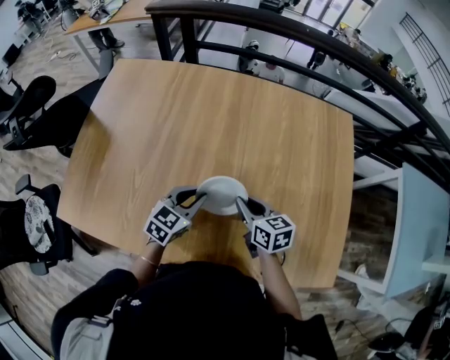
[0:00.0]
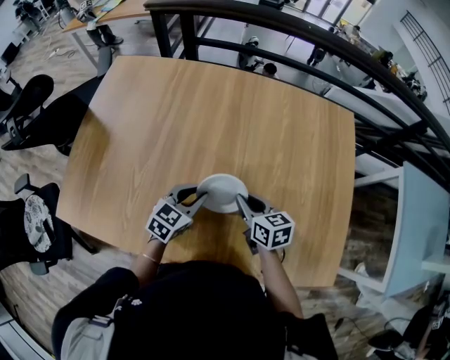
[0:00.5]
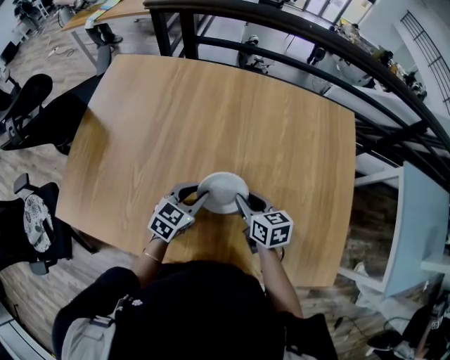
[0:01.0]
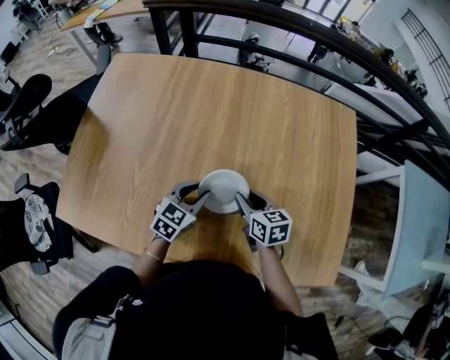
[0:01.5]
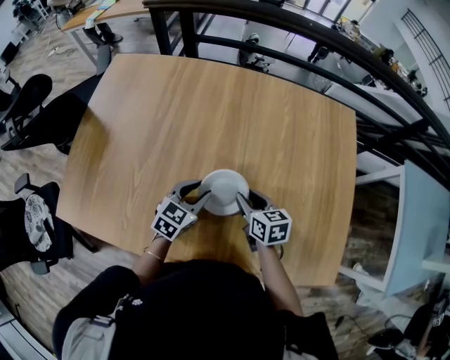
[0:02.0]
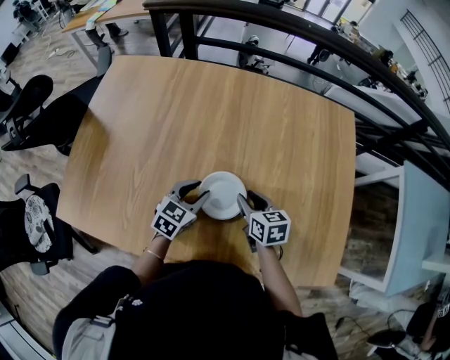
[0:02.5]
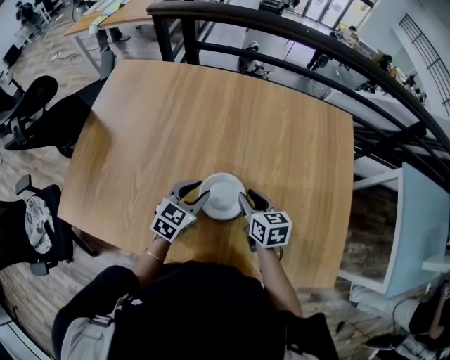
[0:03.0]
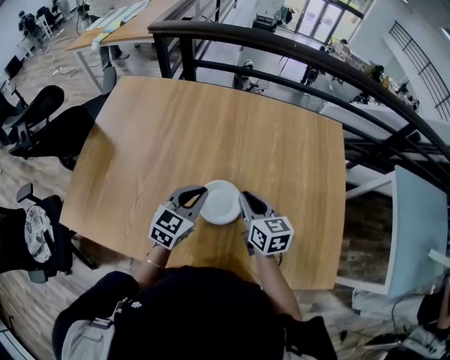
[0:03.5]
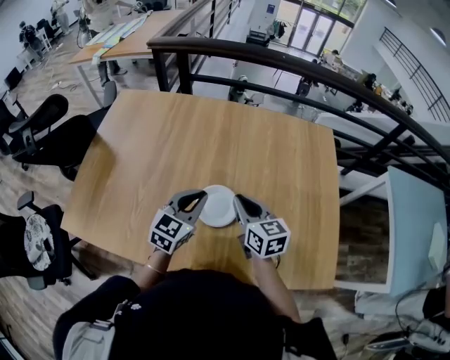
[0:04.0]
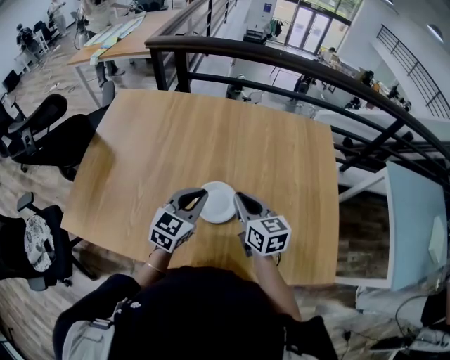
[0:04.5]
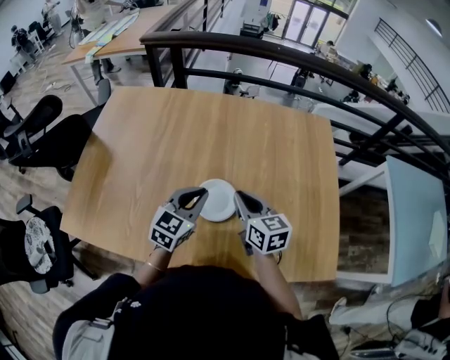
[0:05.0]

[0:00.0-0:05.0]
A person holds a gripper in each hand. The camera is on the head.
0:00.0 to 0:02.5: The right gripper opens its fingers.
0:02.5 to 0:05.0: The grippers both shift upward by roughly 15 cm. The right gripper closes up. The left gripper closes its fingers.

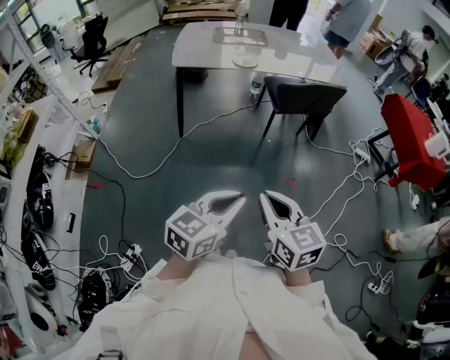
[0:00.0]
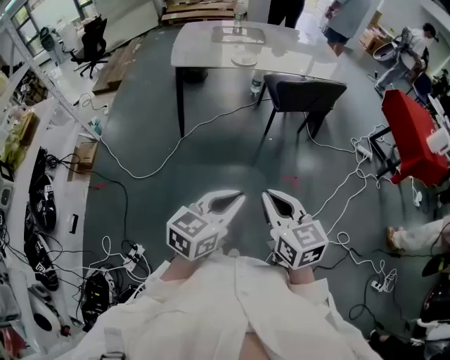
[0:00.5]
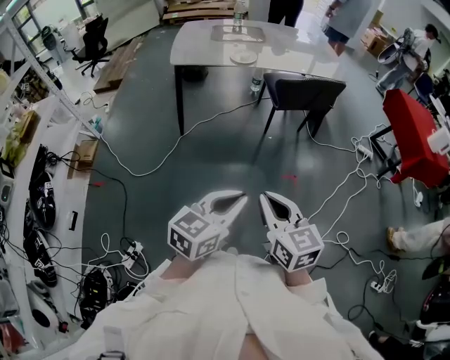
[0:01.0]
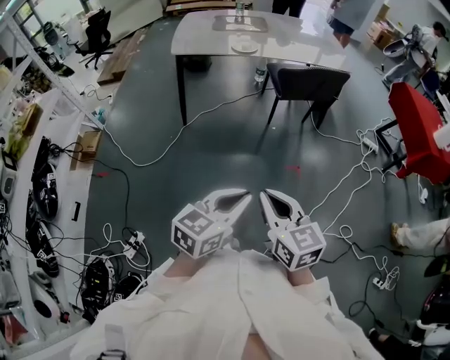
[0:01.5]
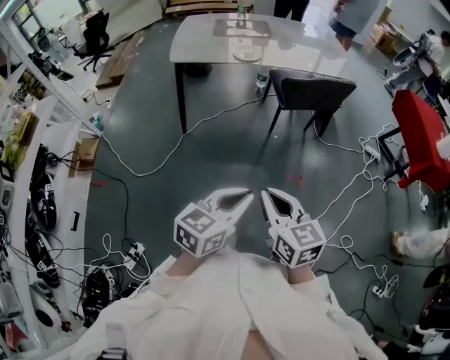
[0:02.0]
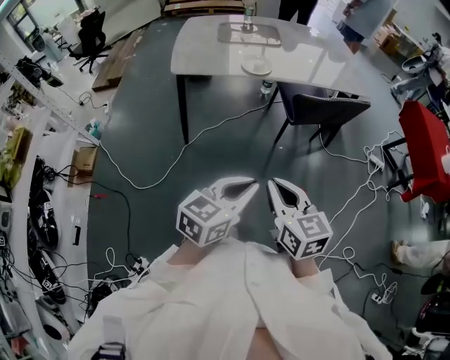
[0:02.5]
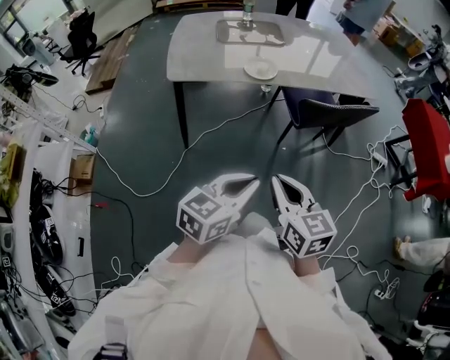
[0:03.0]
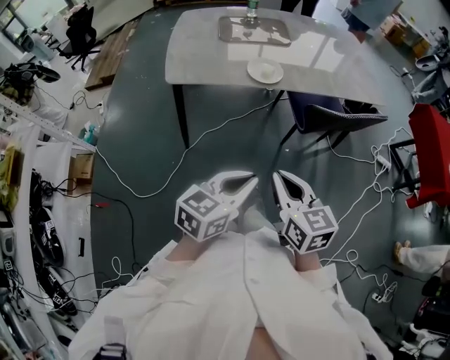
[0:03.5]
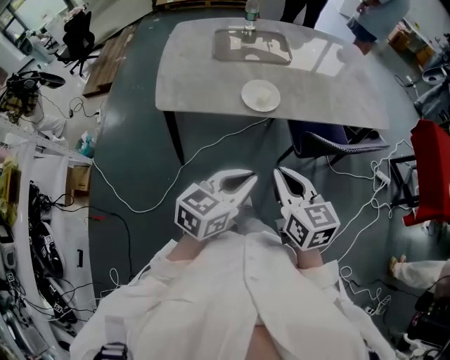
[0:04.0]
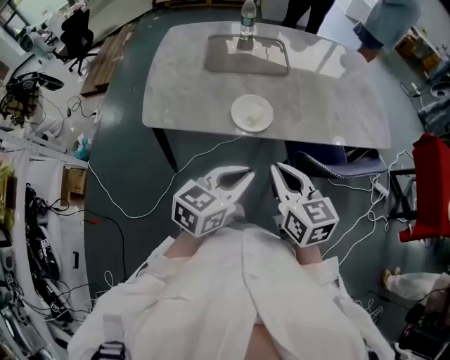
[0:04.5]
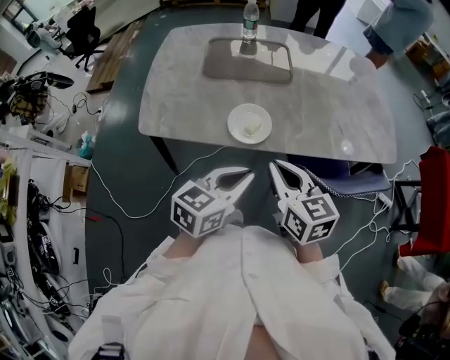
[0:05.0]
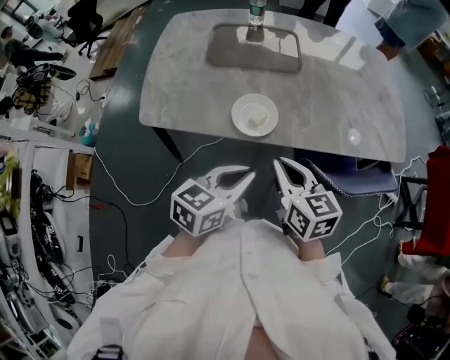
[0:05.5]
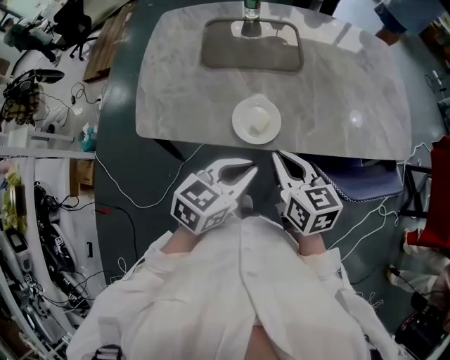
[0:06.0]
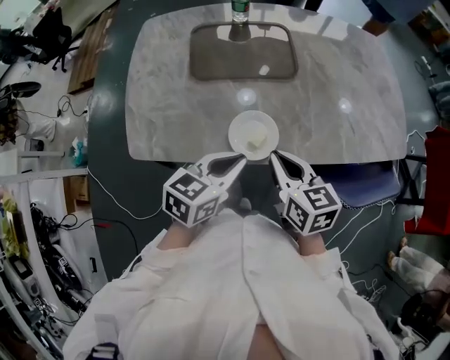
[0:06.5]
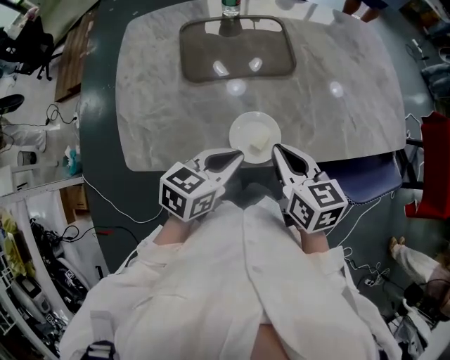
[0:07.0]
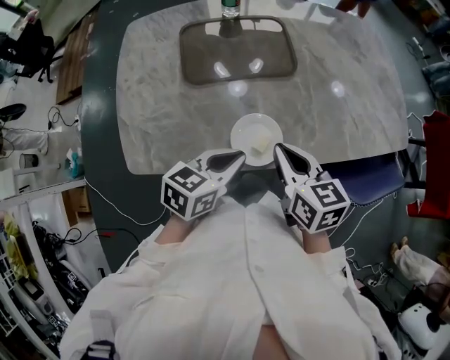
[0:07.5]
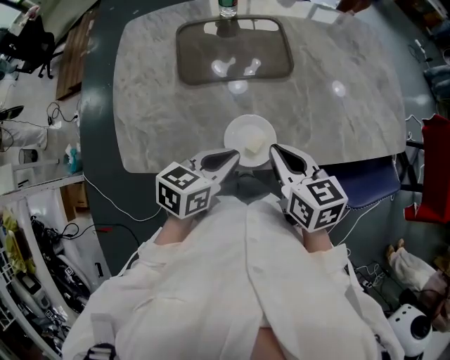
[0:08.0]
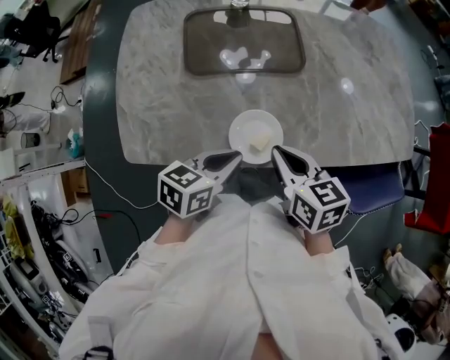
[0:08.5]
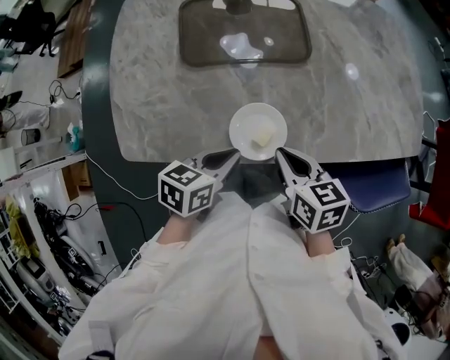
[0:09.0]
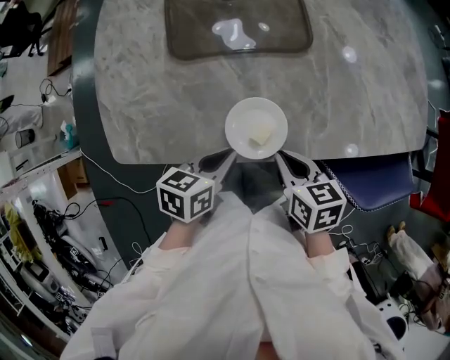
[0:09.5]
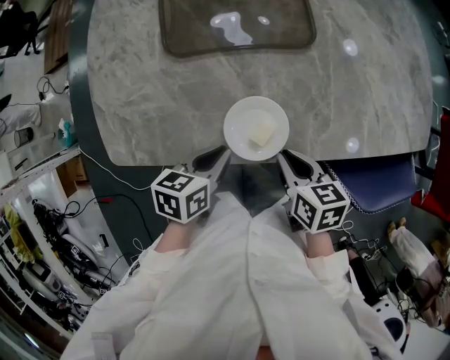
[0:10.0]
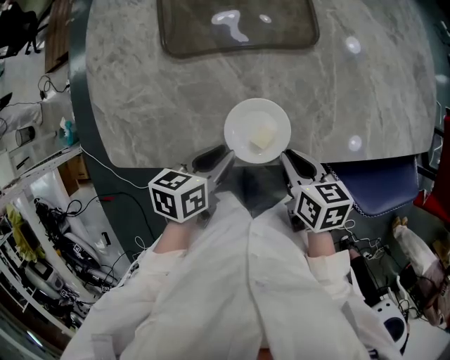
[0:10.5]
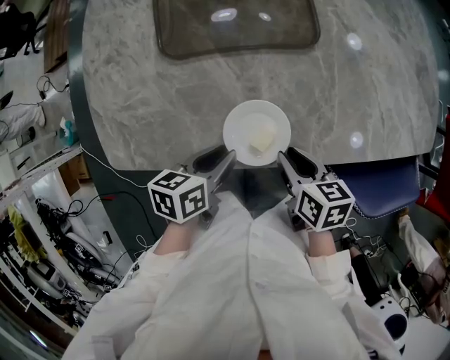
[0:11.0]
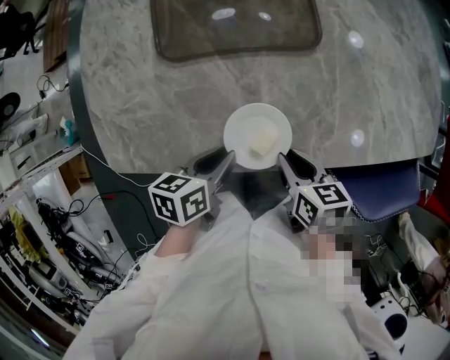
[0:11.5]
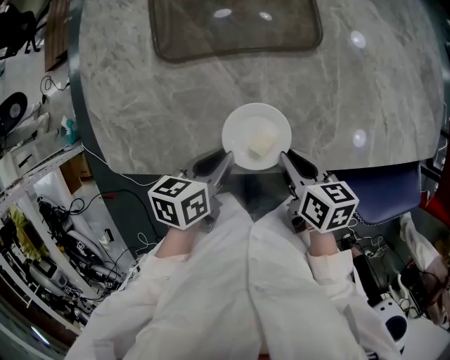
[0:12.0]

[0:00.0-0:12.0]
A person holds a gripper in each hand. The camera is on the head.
0:00.0 to 0:02.0: The grippers both shift forward by roughly 5 cm.
0:02.0 to 0:04.0: Both grippers are carried forward, roughly 50 cm.
0:04.0 to 0:06.0: The two grippers go about 25 cm forward.
0:06.0 to 0:08.0: The right gripper heads forward, covering some 10 cm, while the left gripper is displaced forward and to the left by about 10 cm.
0:08.0 to 0:10.0: Both grippers travel together downward, about 10 cm. The left gripper turns by approximately 20 degrees. Meanwhile the right gripper turns by approximately 20 degrees.
0:10.0 to 0:12.0: There are only small adjustments of the grippers.

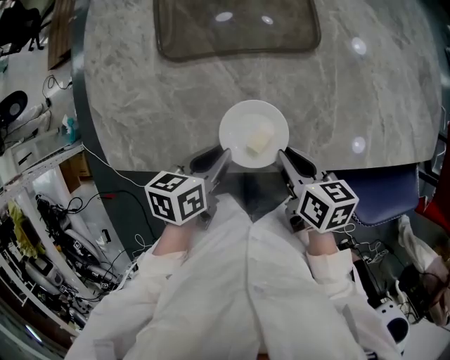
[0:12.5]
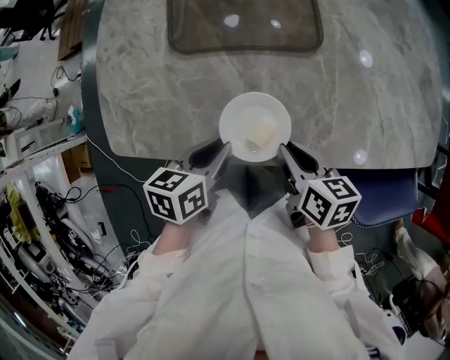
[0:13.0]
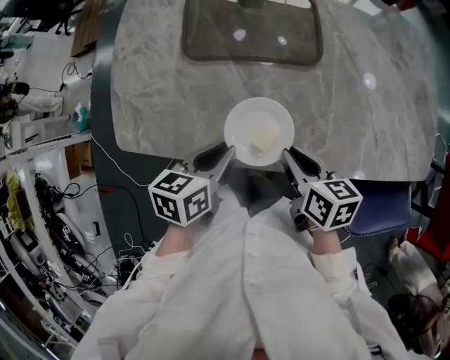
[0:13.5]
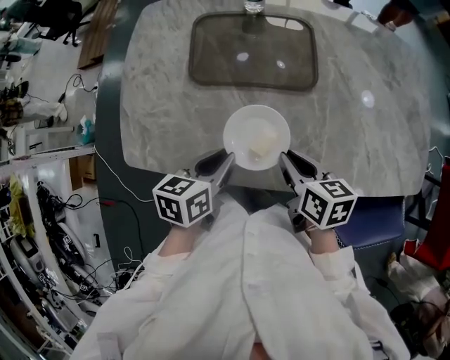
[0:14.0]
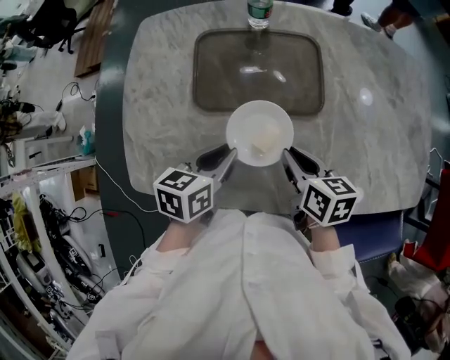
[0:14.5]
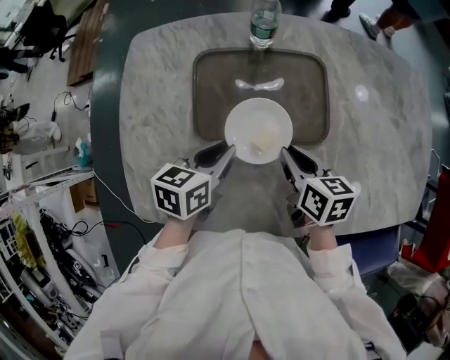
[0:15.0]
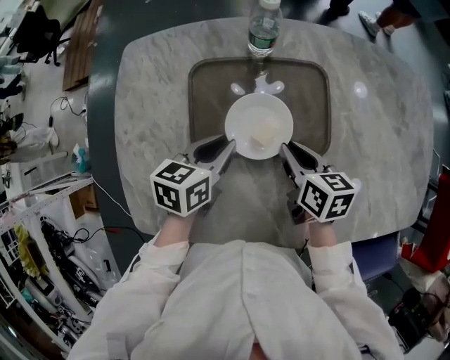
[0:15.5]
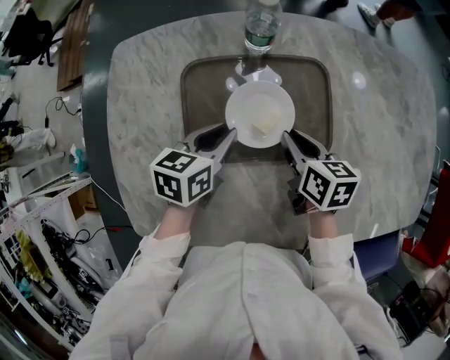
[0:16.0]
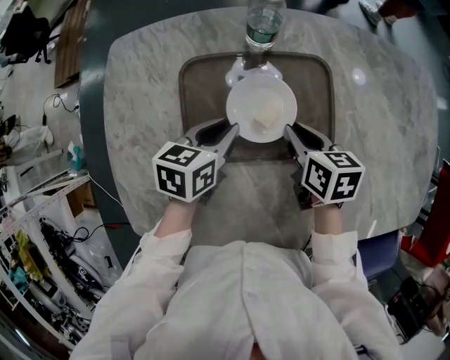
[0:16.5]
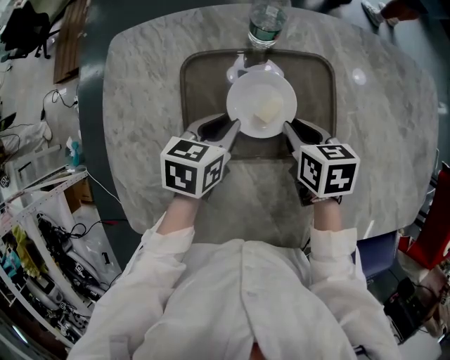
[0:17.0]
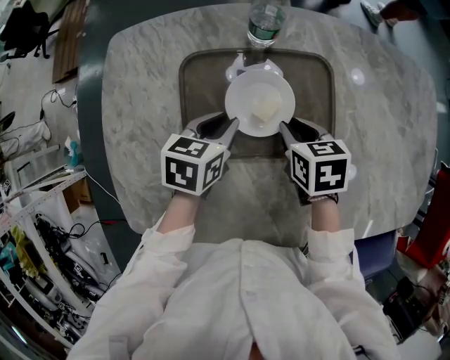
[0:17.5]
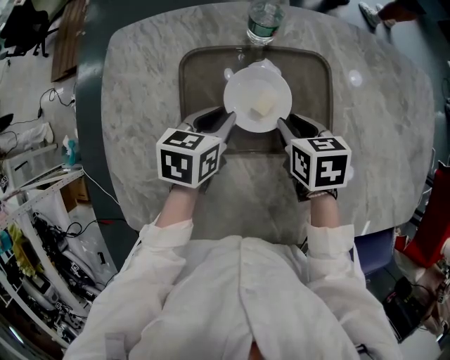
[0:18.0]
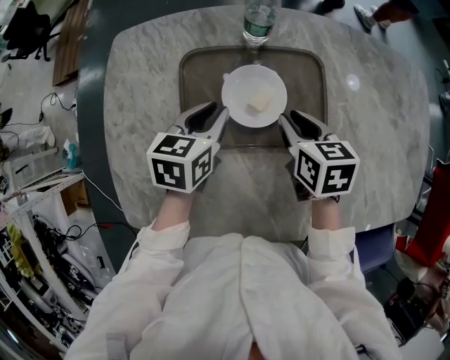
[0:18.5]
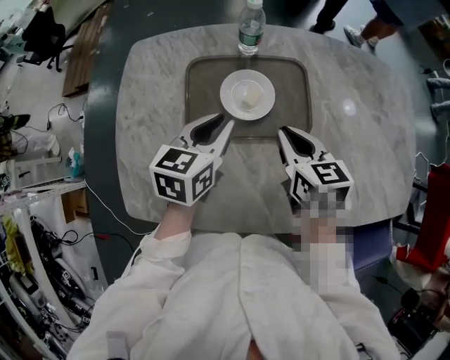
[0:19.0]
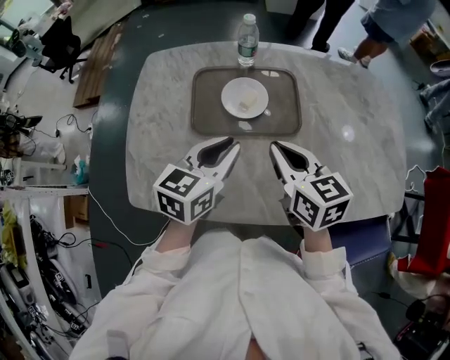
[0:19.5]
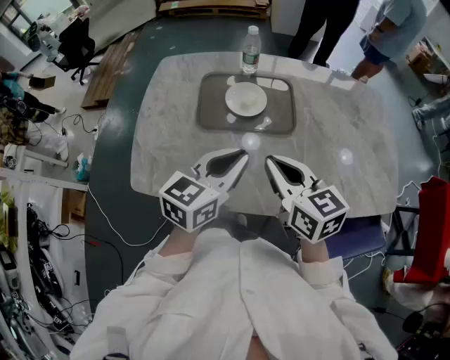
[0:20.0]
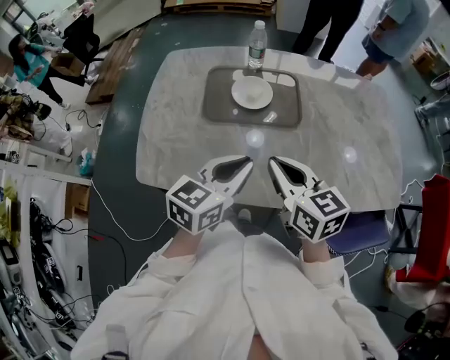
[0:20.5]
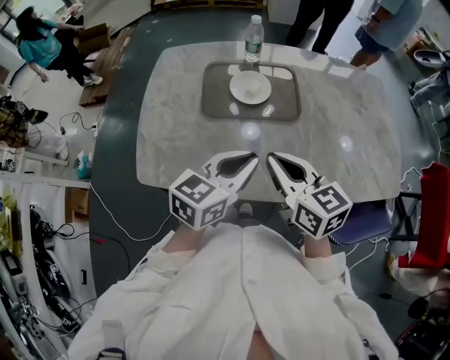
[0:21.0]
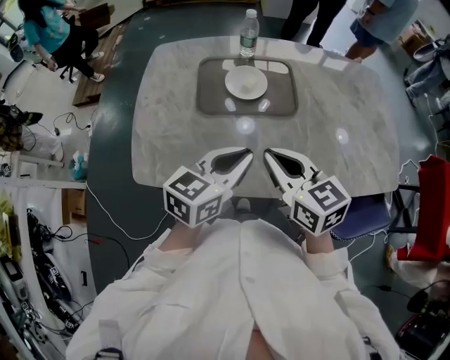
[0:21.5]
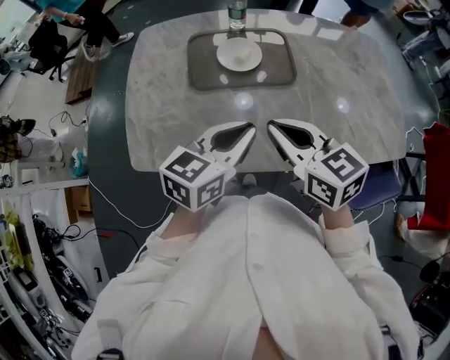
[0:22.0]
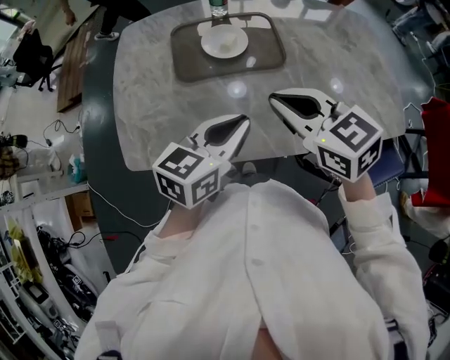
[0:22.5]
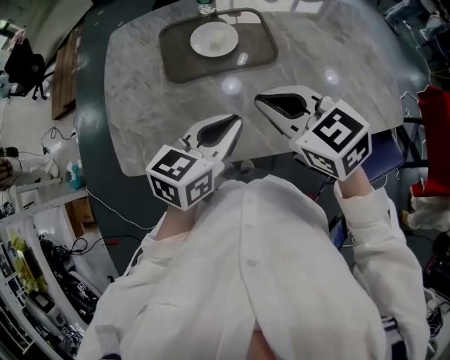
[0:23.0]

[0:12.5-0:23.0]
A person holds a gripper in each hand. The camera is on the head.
0:12.5 to 0:14.5: Both grippers travel together forward and upward, about 15 cm.
0:14.5 to 0:16.5: The two grippers go roughly 20 cm forward.
0:16.5 to 0:19.0: The two grippers go about 15 cm upward and backward.
0:19.0 to 0:21.0: The grippers both shift backward and upward by some 25 cm. The right gripper turns by approximately 20 degrees.
0:21.0 to 0:23.0: The right gripper swivels roughly 20 degrees.
